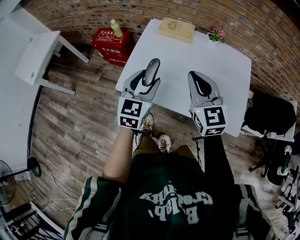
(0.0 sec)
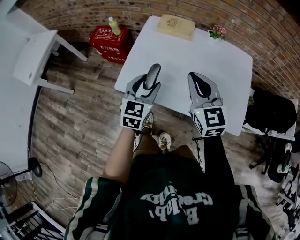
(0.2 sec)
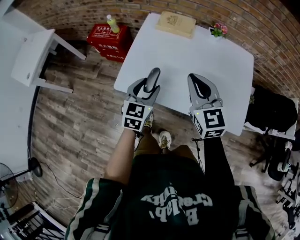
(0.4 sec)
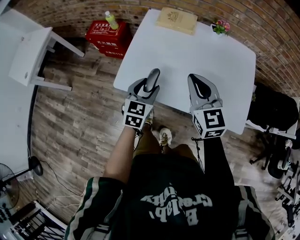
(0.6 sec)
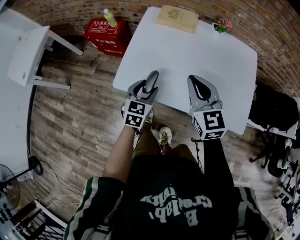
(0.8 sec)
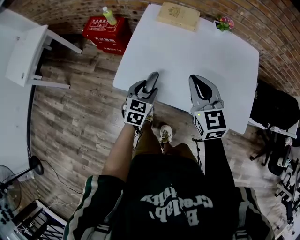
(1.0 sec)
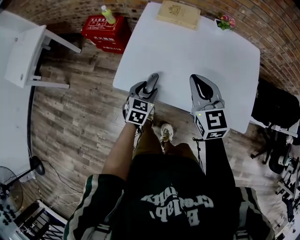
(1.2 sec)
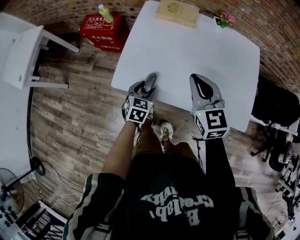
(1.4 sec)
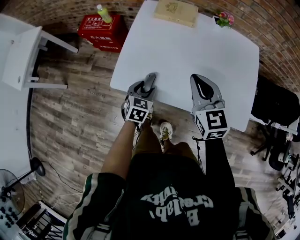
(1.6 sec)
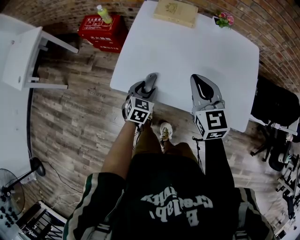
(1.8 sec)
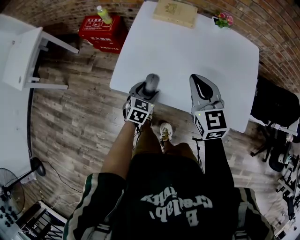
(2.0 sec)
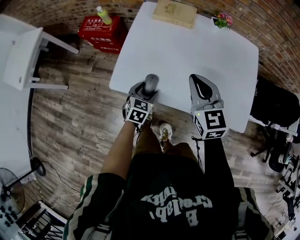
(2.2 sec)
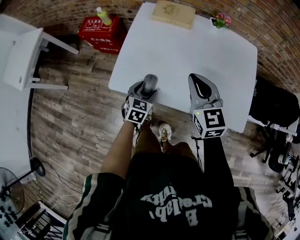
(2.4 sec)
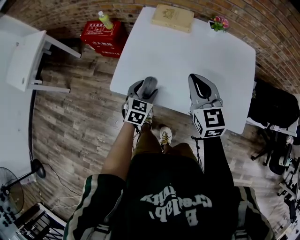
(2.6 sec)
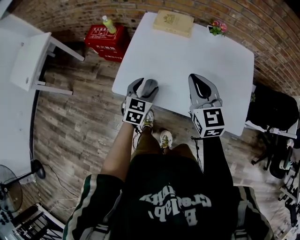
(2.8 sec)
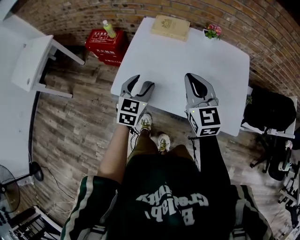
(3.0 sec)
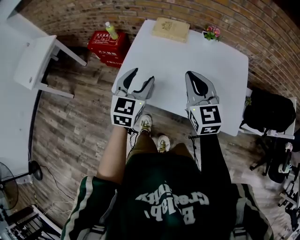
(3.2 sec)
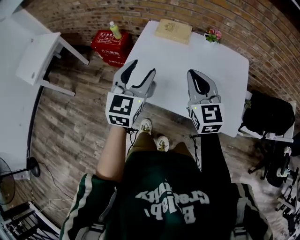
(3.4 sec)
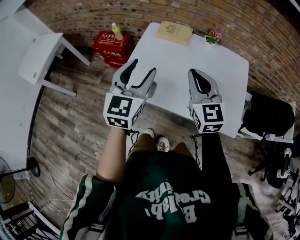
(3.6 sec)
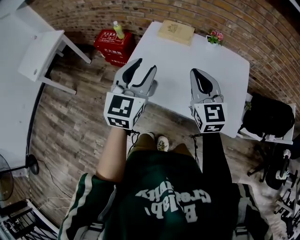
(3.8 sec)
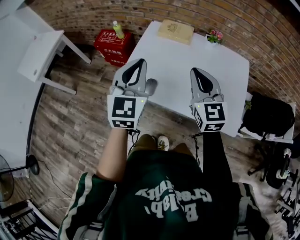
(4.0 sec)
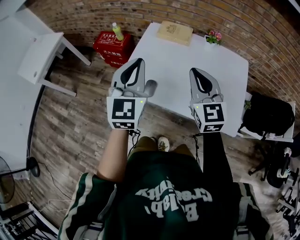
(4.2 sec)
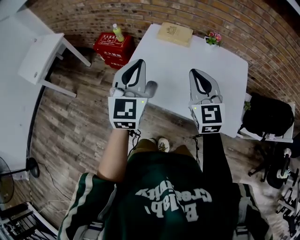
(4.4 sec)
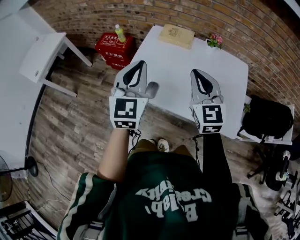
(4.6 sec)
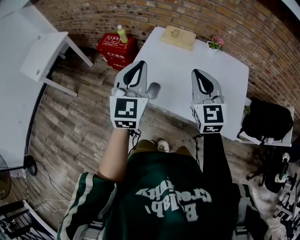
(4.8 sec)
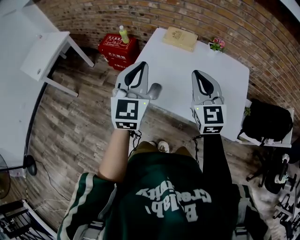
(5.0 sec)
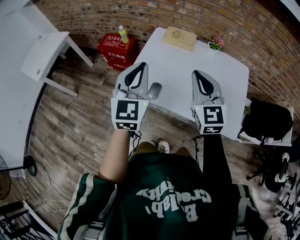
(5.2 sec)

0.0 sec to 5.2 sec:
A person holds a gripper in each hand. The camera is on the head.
0.0 sec to 1.8 sec: The left gripper moves downward, approximately 25 cm, and rotates about 30 degrees; the right gripper moves downward, roughly 10 cm.
1.8 sec to 3.4 sec: The right gripper is displaced upward by approximately 10 cm, while the left gripper heads upward, covering about 30 cm, and angles its fingers upward, by about 30 degrees.
3.4 sec to 5.2 sec: The right gripper changes place by approximately 5 cm. The left gripper moves upward, approximately 5 cm, and closes its fingers.

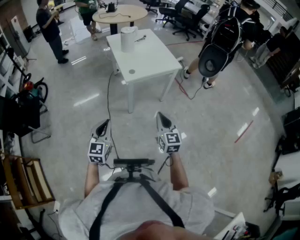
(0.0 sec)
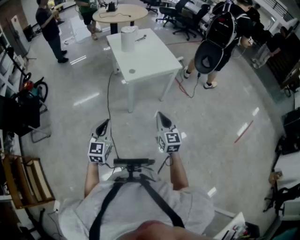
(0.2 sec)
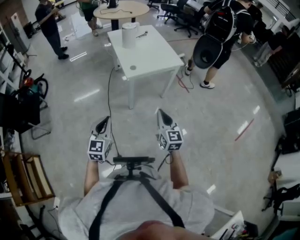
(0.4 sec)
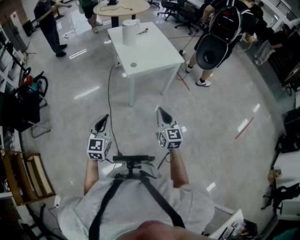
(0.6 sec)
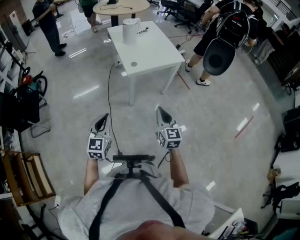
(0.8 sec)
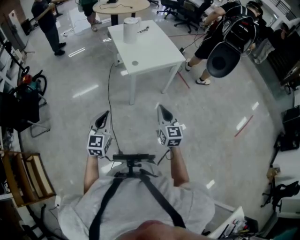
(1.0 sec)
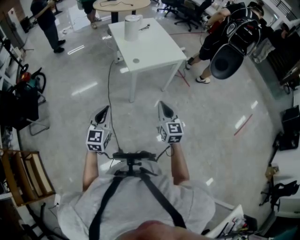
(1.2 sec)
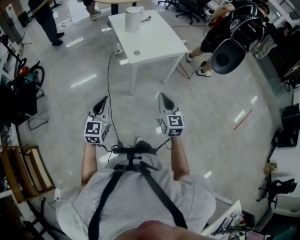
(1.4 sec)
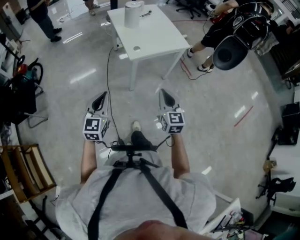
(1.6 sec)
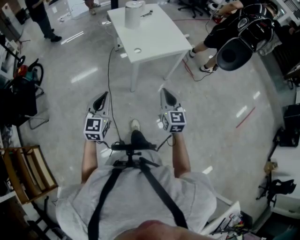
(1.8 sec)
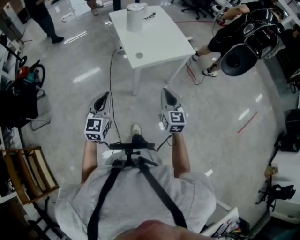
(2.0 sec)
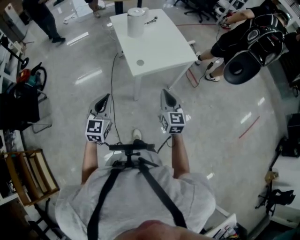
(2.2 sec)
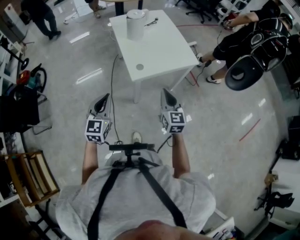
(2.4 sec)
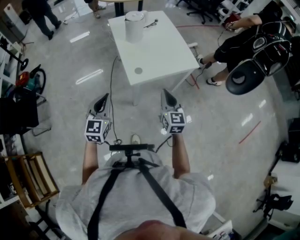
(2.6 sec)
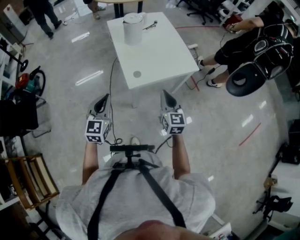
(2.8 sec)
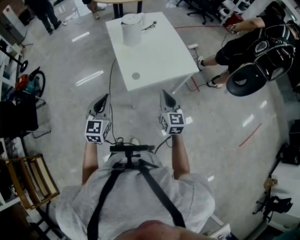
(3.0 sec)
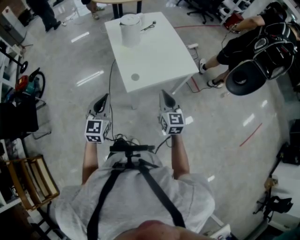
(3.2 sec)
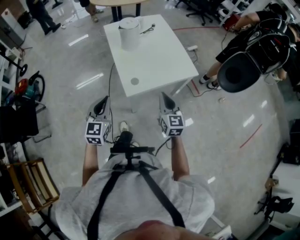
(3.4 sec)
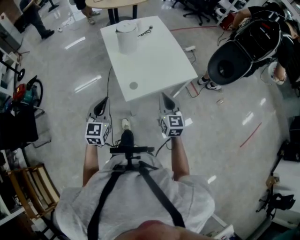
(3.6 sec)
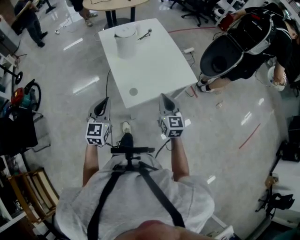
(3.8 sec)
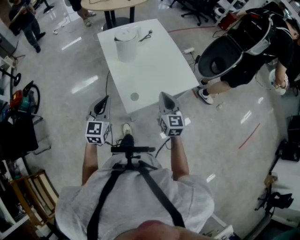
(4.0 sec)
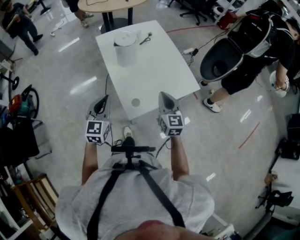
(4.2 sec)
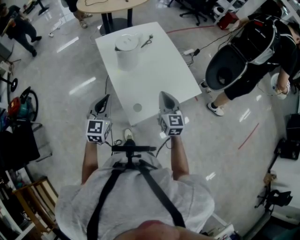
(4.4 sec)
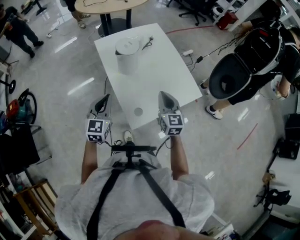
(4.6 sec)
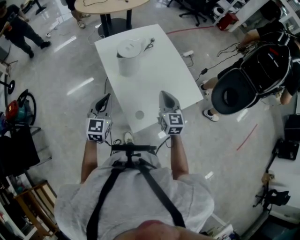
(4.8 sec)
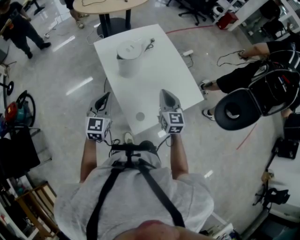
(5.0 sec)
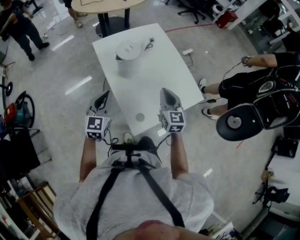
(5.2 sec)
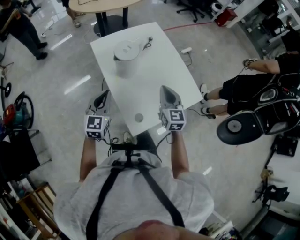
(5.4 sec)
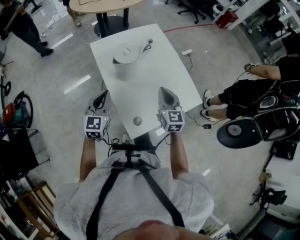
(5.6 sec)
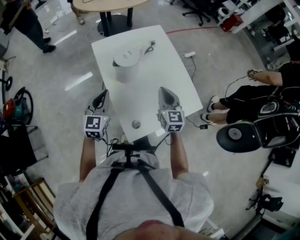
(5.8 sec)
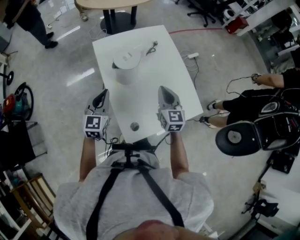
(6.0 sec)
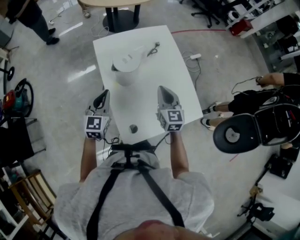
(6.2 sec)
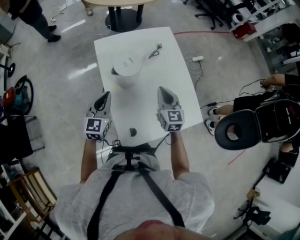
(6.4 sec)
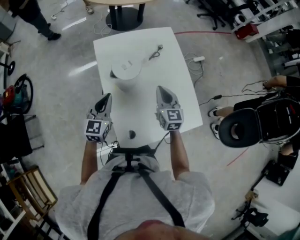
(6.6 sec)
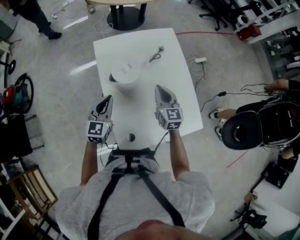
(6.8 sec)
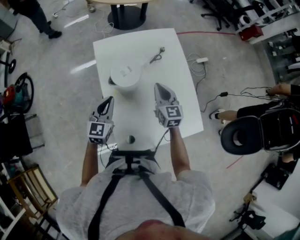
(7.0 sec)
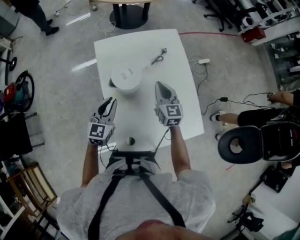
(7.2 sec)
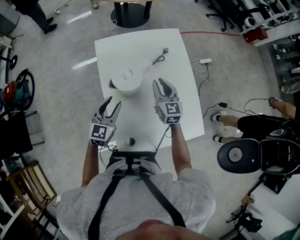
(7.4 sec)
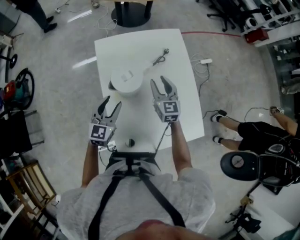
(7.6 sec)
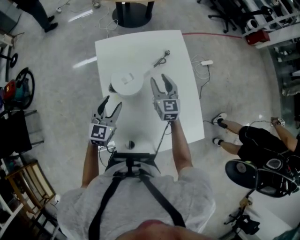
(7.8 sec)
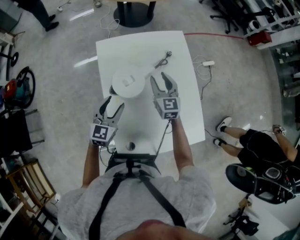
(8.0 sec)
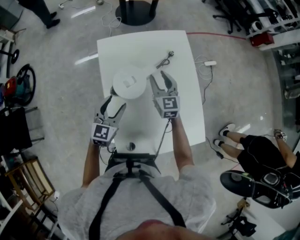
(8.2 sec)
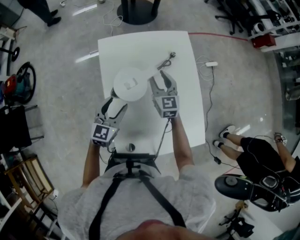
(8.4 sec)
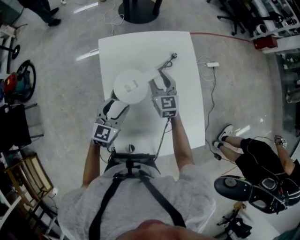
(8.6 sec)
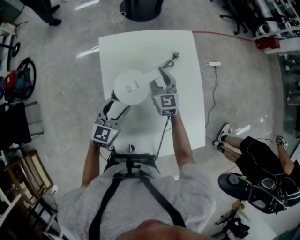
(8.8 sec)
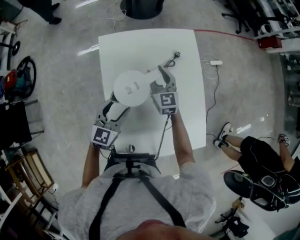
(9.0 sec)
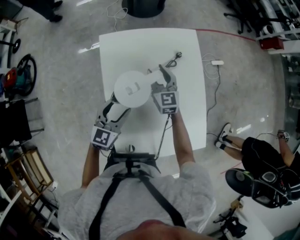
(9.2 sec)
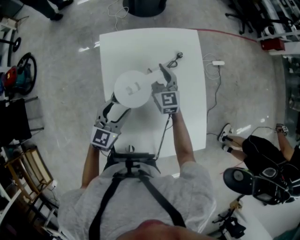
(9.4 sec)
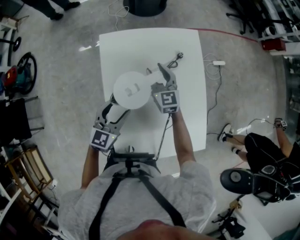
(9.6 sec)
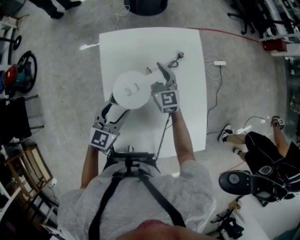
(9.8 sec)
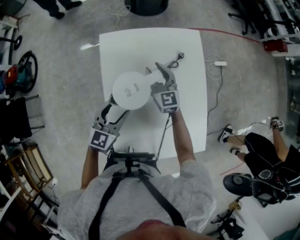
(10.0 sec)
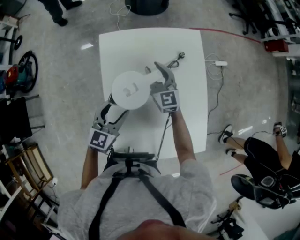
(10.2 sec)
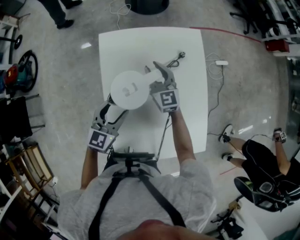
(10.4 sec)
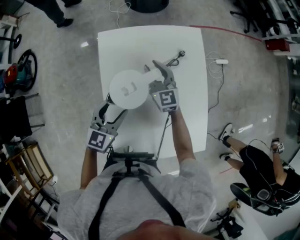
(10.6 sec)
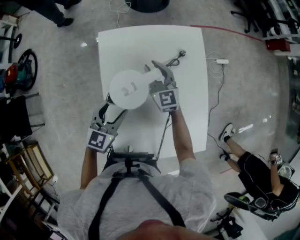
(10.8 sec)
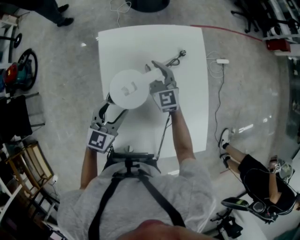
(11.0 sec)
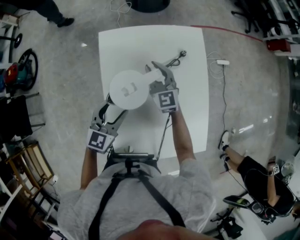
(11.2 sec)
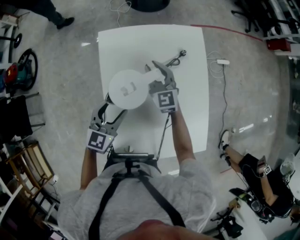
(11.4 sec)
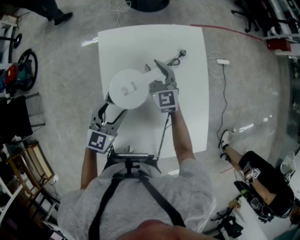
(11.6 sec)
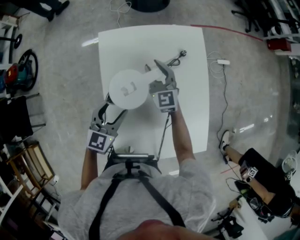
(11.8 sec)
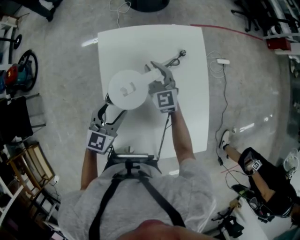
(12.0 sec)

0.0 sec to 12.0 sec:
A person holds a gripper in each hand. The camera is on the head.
0.0 sec to 1.6 sec: The left gripper is displaced forward by roughly 5 cm; the right gripper ends up some 5 cm from where it was.
1.6 sec to 3.0 sec: Both grippers travel together forward, approximately 25 cm.
3.0 sec to 4.4 sec: The grippers both shift forward by approximately 20 cm.
4.4 sec to 6.0 sec: Both grippers travel together forward, some 15 cm.
6.0 sec to 7.6 sec: The right gripper goes approximately 15 cm forward, and opens its fingers. Meanwhile the left gripper travels downward and forward by about 10 cm, and opens up.
7.6 sec to 9.0 sec: The right gripper travels forward and to the left by about 10 cm.
9.0 sec to 12.0 sec: The grippers move only a little.

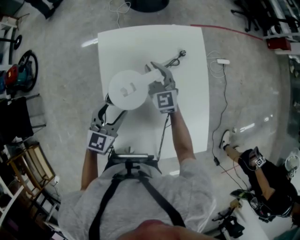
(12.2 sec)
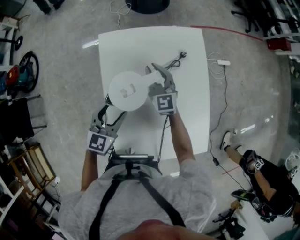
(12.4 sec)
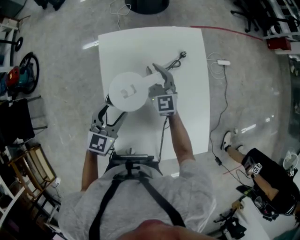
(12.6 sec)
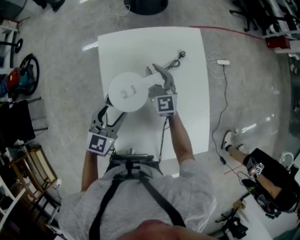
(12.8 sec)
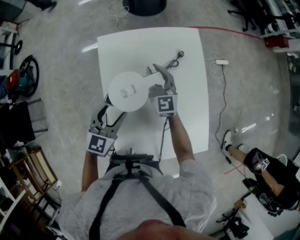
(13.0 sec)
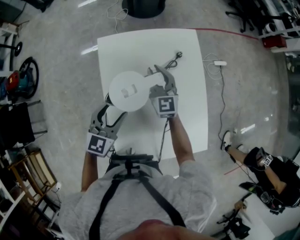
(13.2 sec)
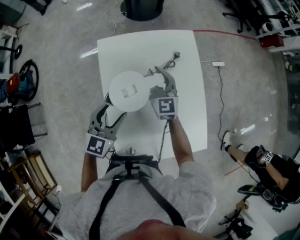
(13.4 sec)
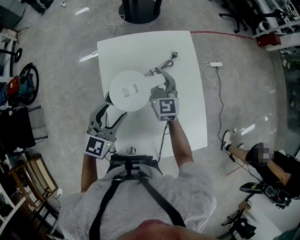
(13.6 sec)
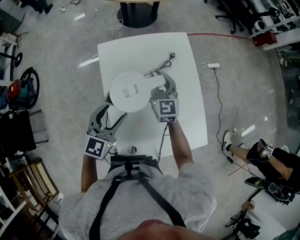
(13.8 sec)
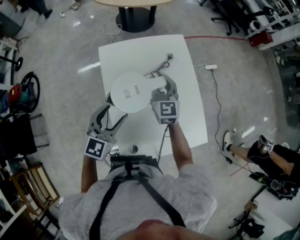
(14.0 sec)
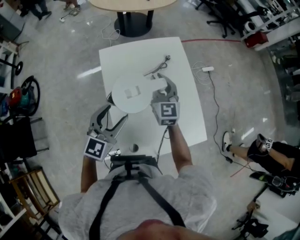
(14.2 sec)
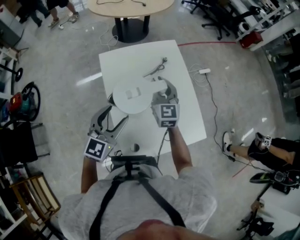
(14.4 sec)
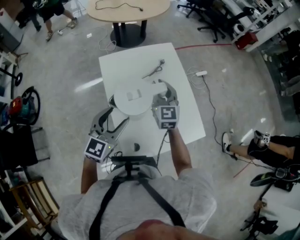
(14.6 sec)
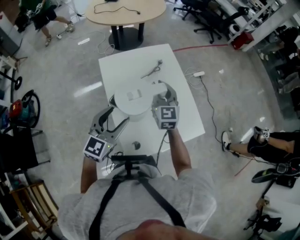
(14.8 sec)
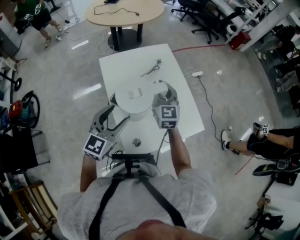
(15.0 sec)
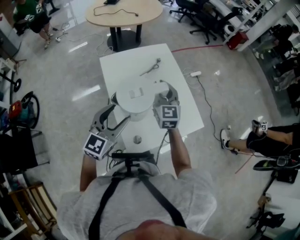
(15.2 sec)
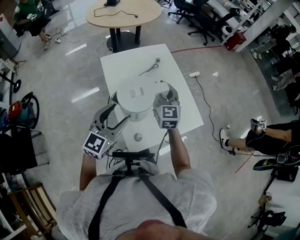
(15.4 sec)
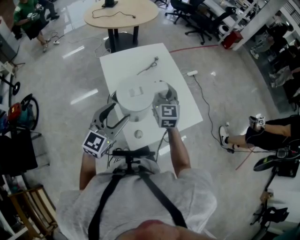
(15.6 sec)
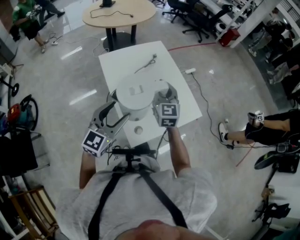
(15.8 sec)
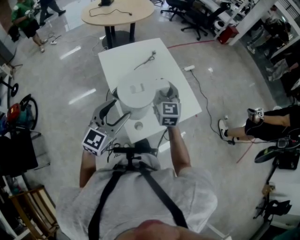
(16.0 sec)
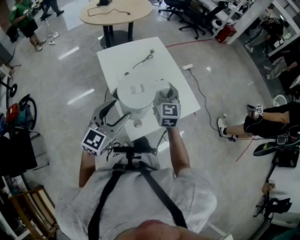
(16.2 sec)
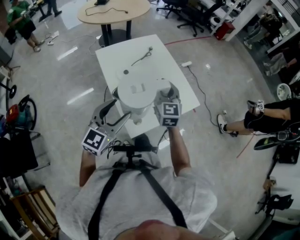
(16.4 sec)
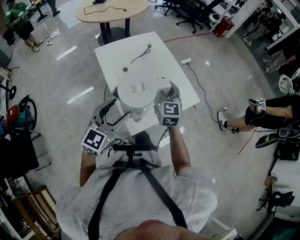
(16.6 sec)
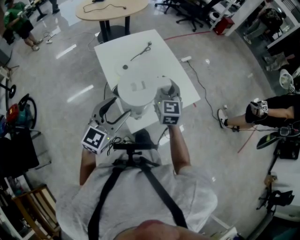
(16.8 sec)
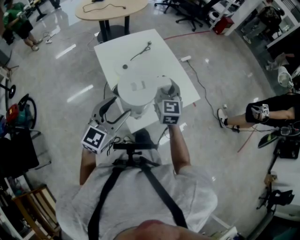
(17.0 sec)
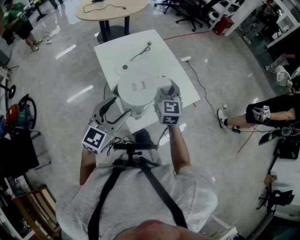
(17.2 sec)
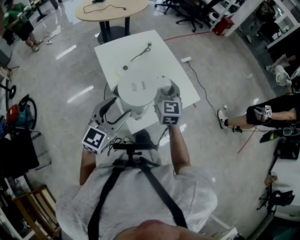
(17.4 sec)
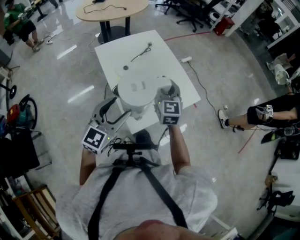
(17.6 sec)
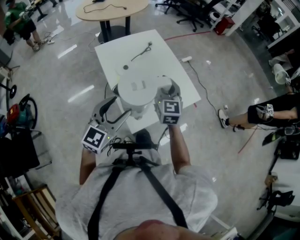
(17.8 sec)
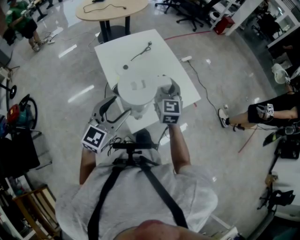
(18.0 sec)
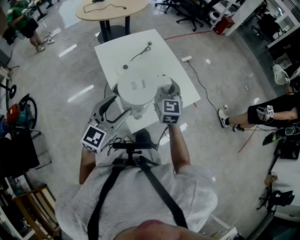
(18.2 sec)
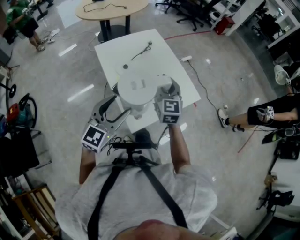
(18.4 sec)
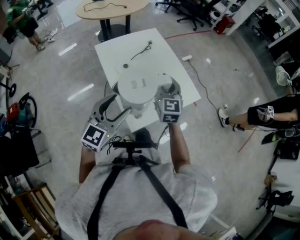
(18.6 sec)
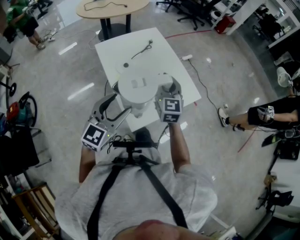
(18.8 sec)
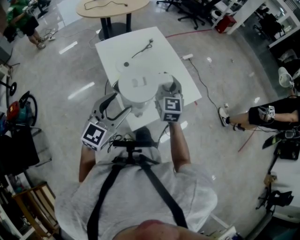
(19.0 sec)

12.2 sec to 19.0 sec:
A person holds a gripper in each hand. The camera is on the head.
12.2 sec to 13.6 sec: The two grippers go approximately 5 cm upward.
13.6 sec to 15.0 sec: The left gripper heads backward and upward, covering about 15 cm. The right gripper goes about 20 cm backward, upward and to the right.
15.0 sec to 16.2 sec: The grippers both shift backward by about 10 cm.
16.2 sec to 17.6 sec: The grippers make only small movements.
17.6 sec to 19.0 sec: The two grippers keep their place.
